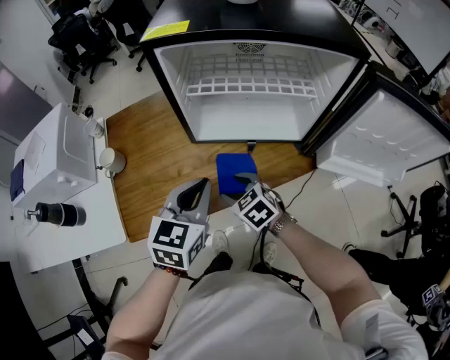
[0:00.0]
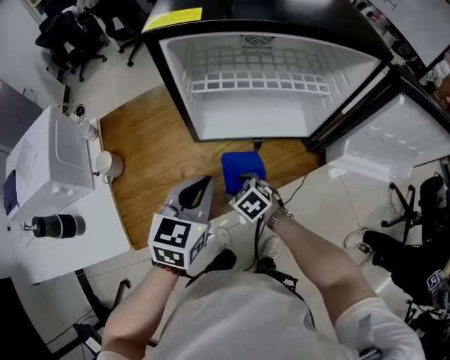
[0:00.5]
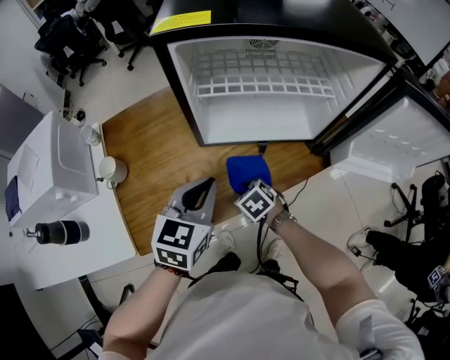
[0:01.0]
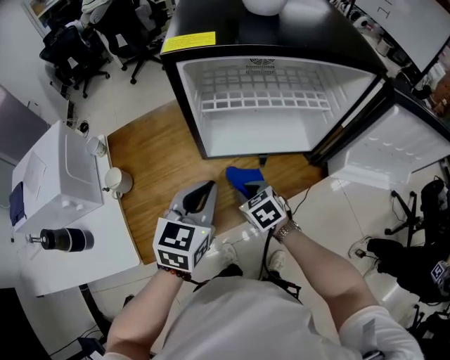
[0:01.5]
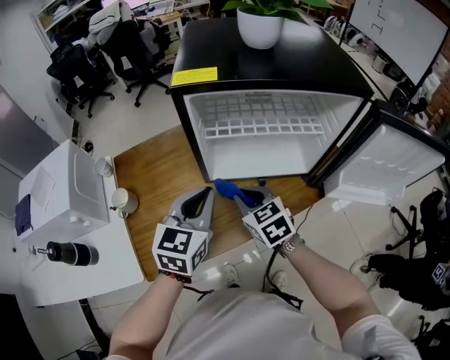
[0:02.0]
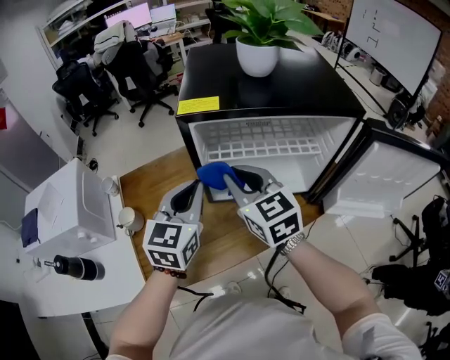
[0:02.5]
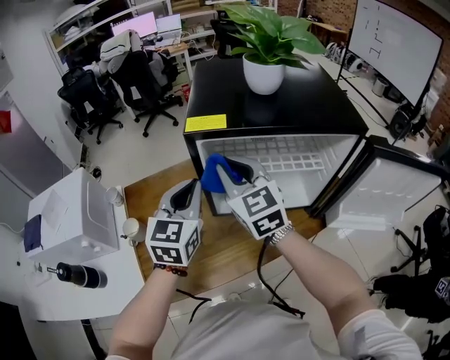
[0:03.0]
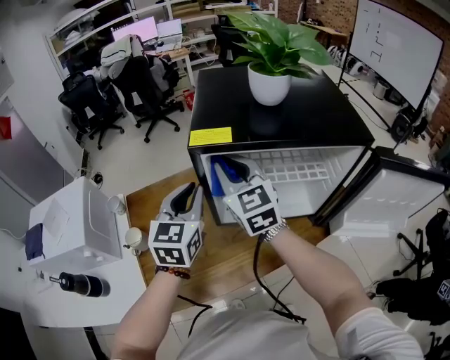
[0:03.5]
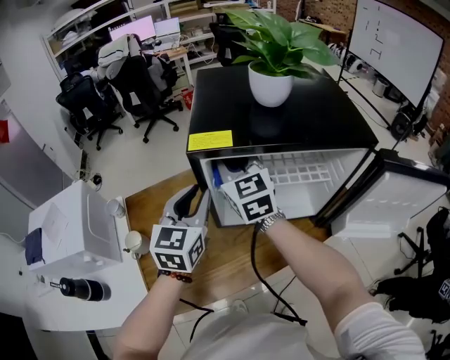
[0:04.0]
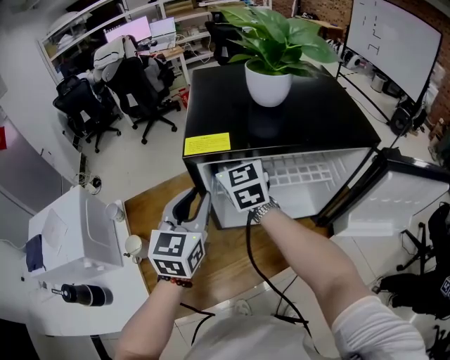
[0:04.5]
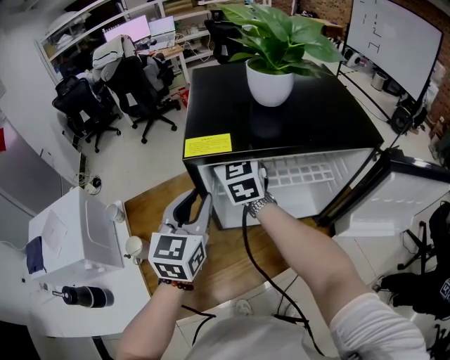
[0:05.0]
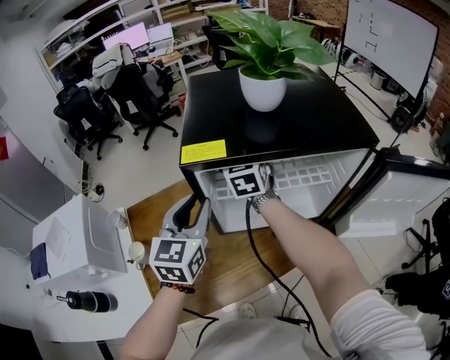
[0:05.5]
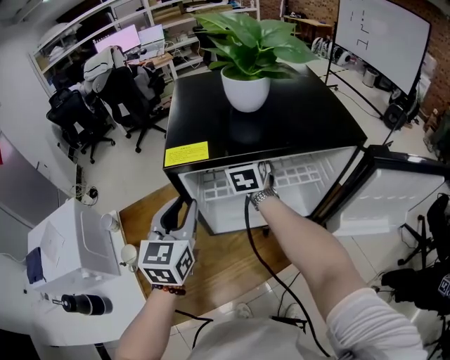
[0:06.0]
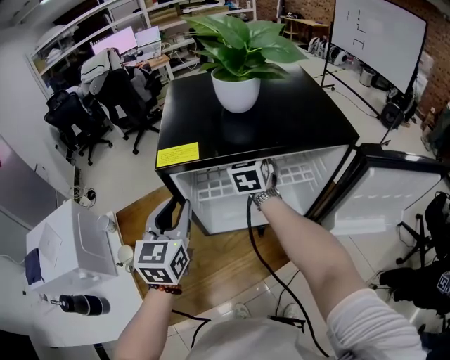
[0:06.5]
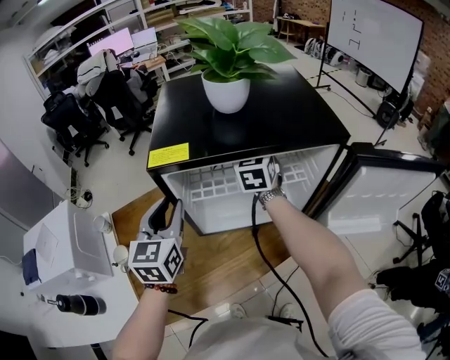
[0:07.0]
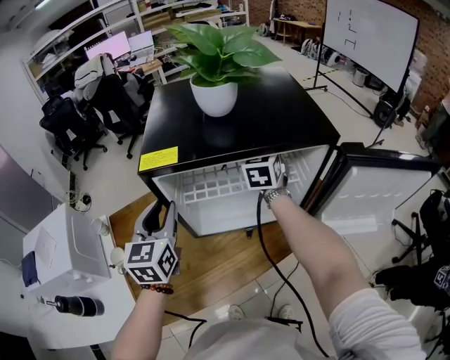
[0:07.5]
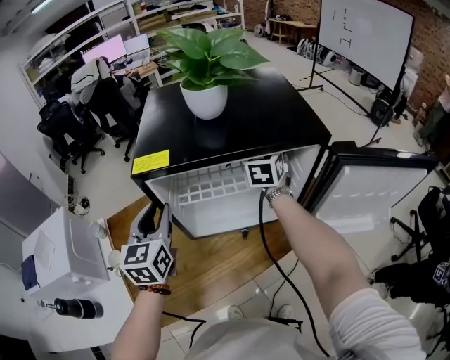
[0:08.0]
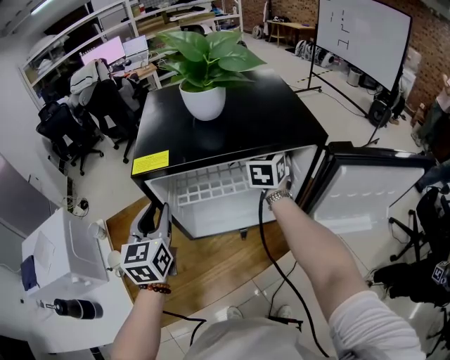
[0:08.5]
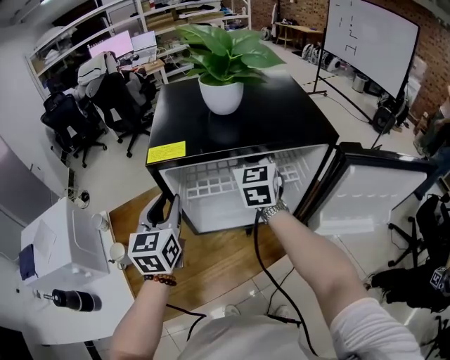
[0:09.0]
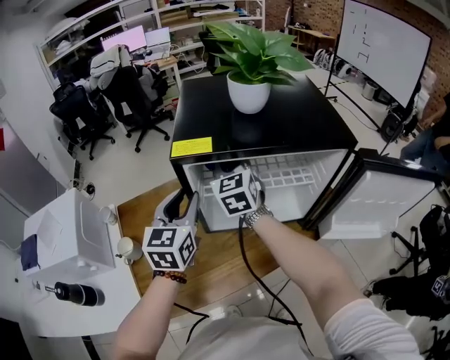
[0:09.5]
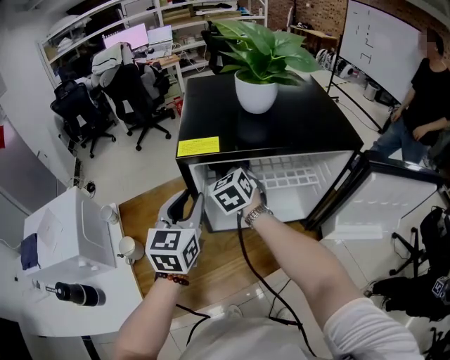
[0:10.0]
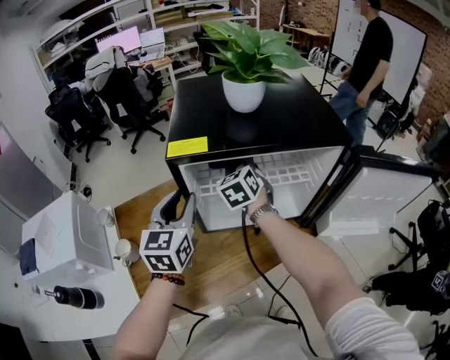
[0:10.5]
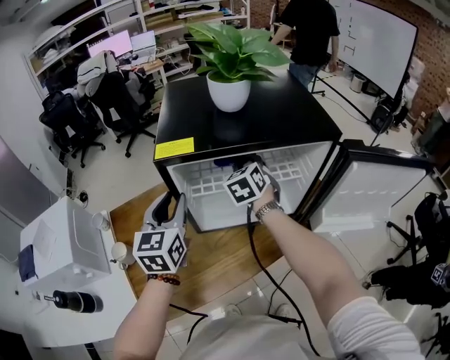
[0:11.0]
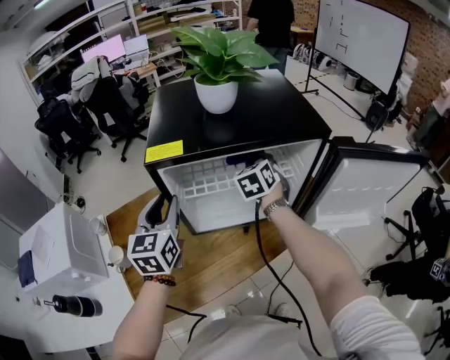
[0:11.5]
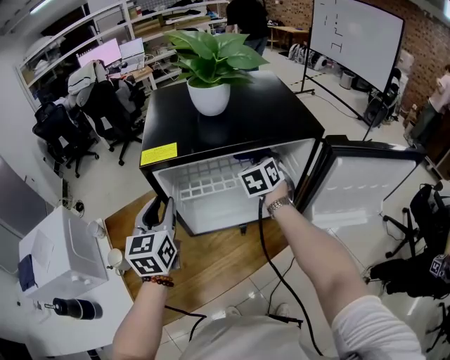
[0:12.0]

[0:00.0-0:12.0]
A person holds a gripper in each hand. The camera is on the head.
0:00.0 to 0:02.0: The right gripper heads upward and forward, covering some 15 cm, and closes up. Meanwhile the left gripper heads forward, covering roughly 10 cm.
0:02.0 to 0:04.0: The right gripper heads upward and forward, covering approximately 30 cm, and turns by roughly 30 degrees. Meanwhile the left gripper moves forward and upward, about 15 cm, and opens its fingers.
0:04.0 to 0:06.0: The right gripper moves forward and to the right, roughly 15 cm, and swivels about 20 degrees.
0:06.0 to 0:08.0: The right gripper is displaced to the right by roughly 15 cm.
0:08.0 to 0:10.0: The right gripper heads to the left, covering roughly 25 cm, and swivels about 30 degrees.
0:10.0 to 0:12.0: The right gripper shifts roughly 25 cm to the right, and swivels some 30 degrees.

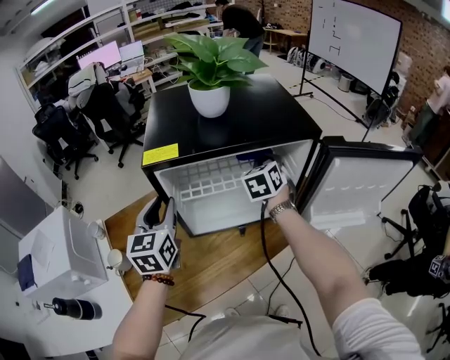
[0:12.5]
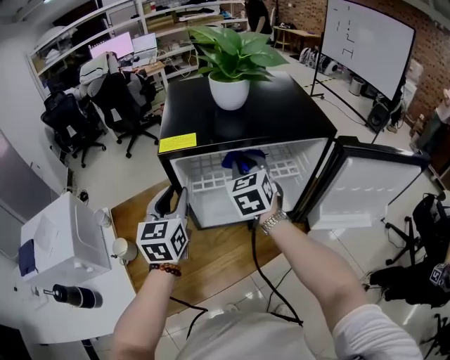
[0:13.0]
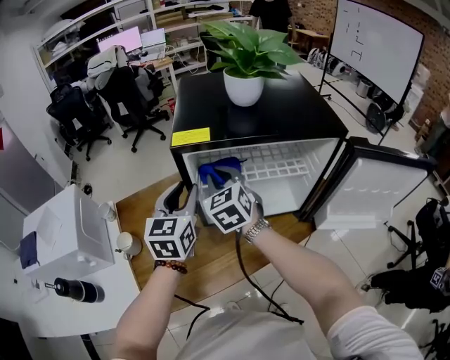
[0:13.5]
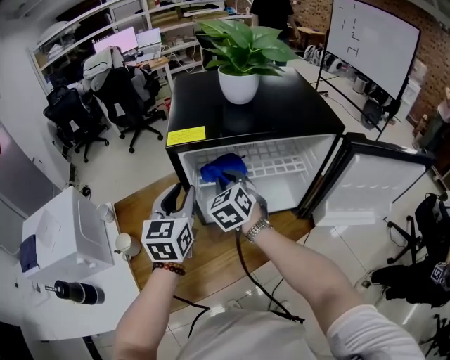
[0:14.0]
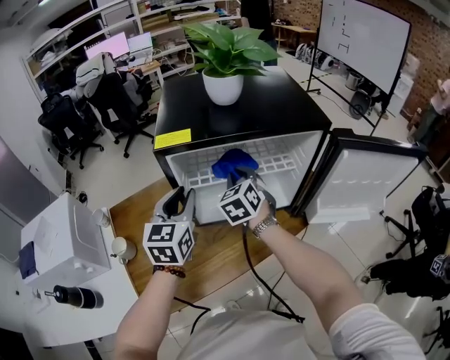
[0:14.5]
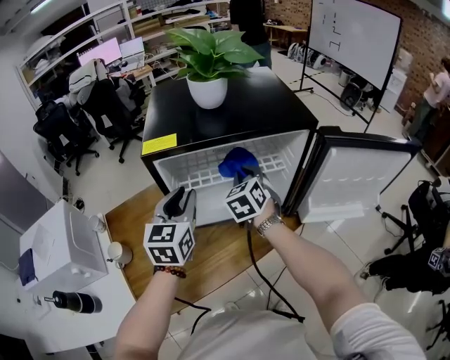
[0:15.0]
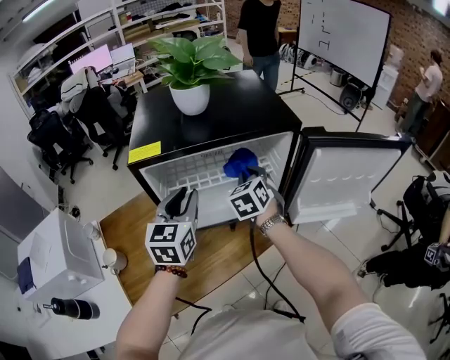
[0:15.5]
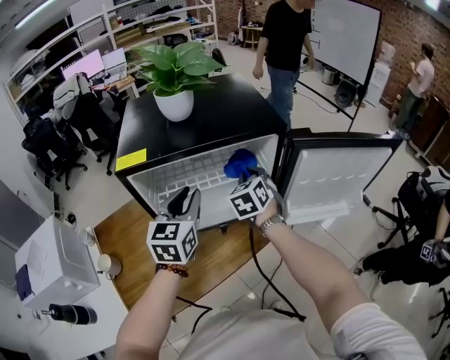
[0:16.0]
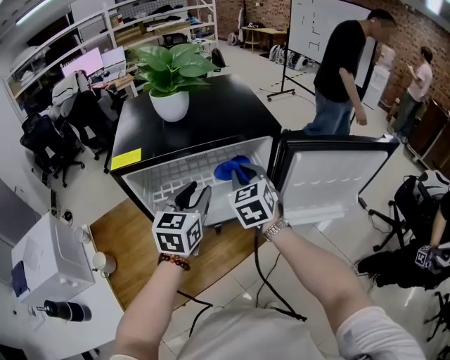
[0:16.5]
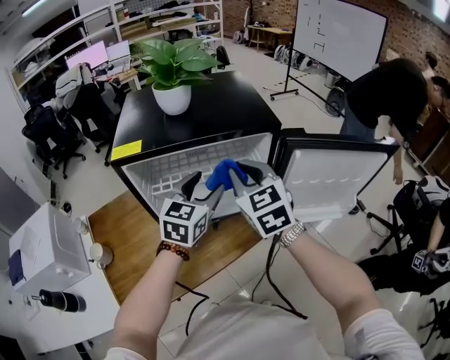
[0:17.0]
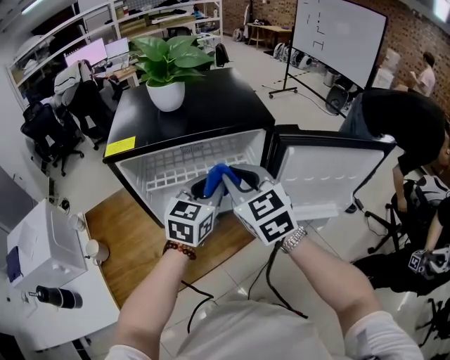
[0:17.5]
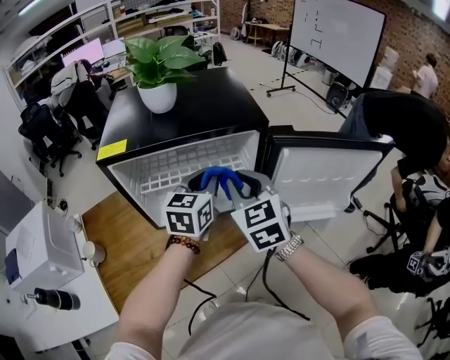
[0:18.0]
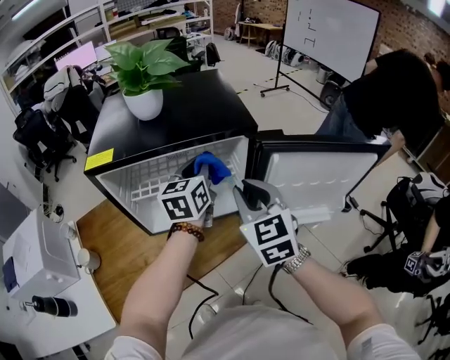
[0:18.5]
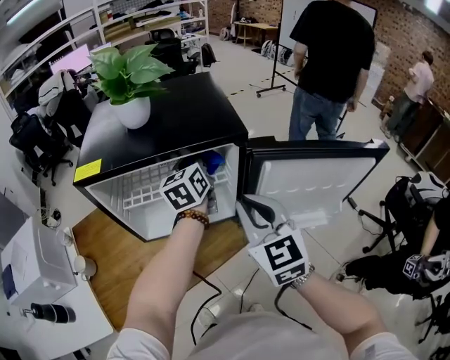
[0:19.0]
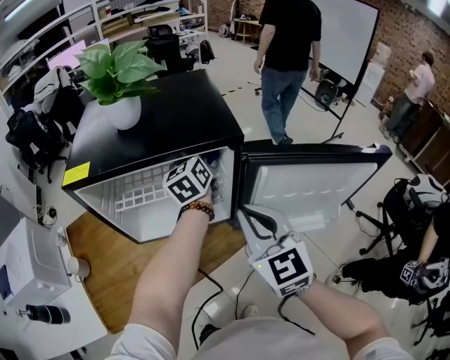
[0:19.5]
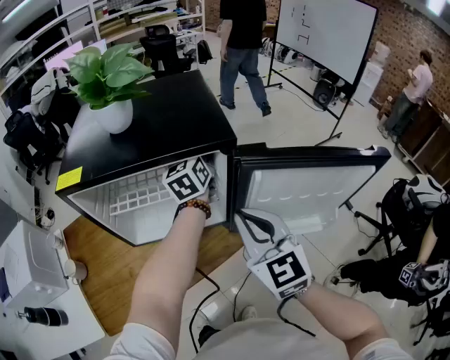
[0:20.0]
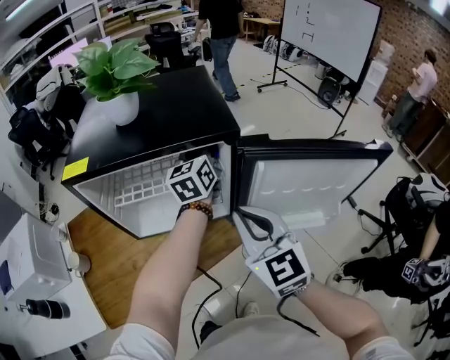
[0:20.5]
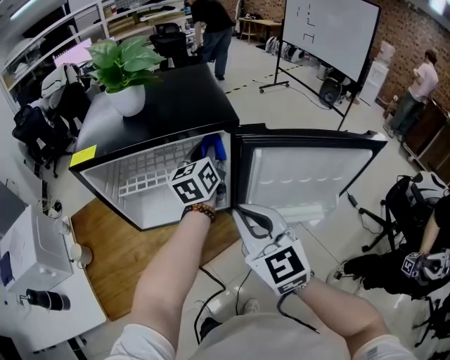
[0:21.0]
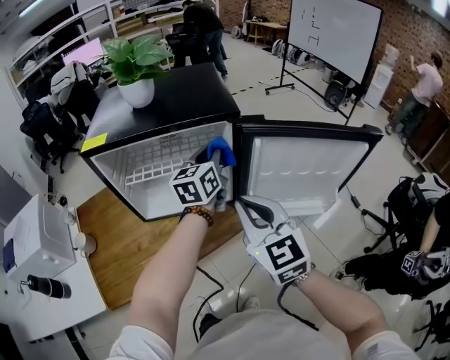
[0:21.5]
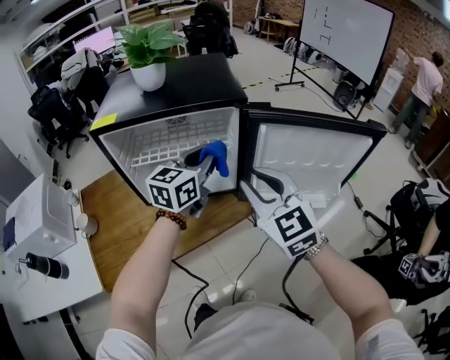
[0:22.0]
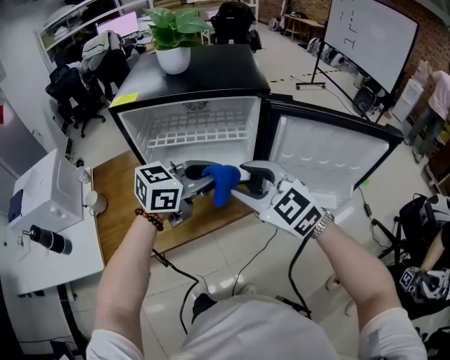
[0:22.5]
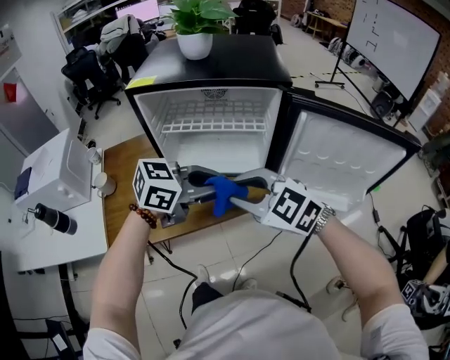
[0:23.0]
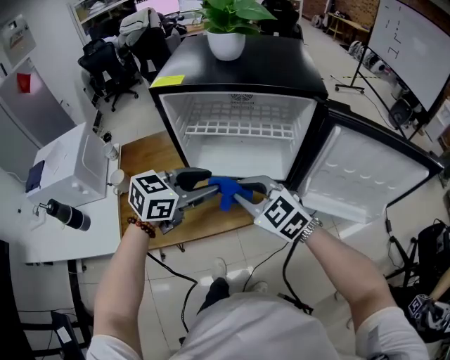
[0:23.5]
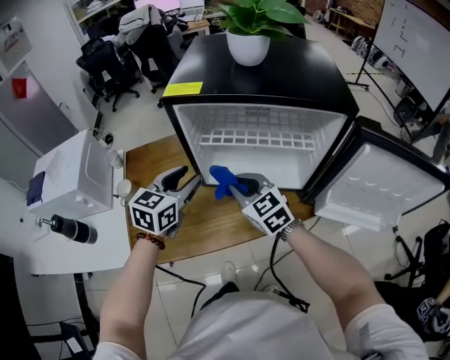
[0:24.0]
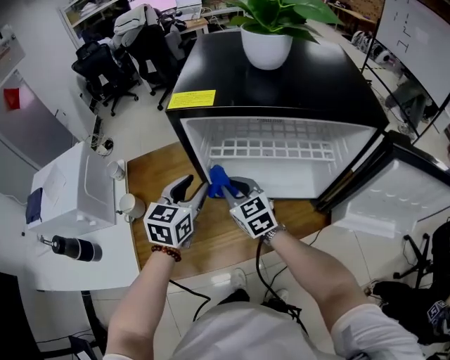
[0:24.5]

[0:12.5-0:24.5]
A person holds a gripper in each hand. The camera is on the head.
0:12.5 to 0:14.5: The right gripper heads to the left and backward, covering approximately 15 cm.
0:14.5 to 0:16.5: The left gripper goes about 15 cm to the right, while the right gripper moves to the right and upward, some 15 cm.
0:16.5 to 0:18.5: The left gripper shifts about 10 cm forward and to the right, and closes. Meanwhile the right gripper moves backward and to the right, roughly 10 cm.
0:18.5 to 0:20.5: The left gripper travels forward and to the right by approximately 10 cm.
0:20.5 to 0:22.5: The right gripper shifts some 10 cm backward and to the left, swivels approximately 30 degrees, and opens its fingers. Meanwhile the left gripper is displaced backward by roughly 25 cm, and rotates approximately 50 degrees.
0:22.5 to 0:24.5: The right gripper ends up approximately 35 cm from where it was, swivels some 20 degrees, and closes its fingers. Meanwhile the left gripper ends up approximately 35 cm from where it was, swivels about 50 degrees, and opens up.

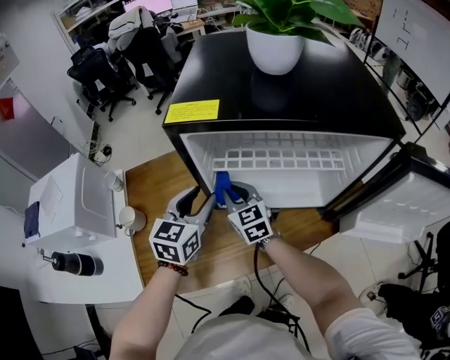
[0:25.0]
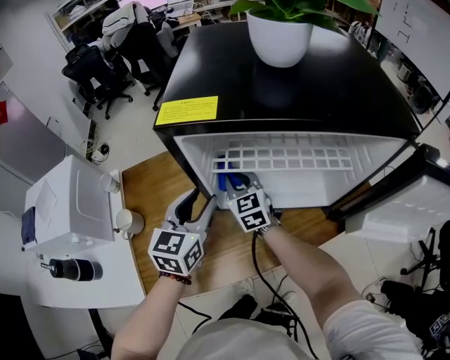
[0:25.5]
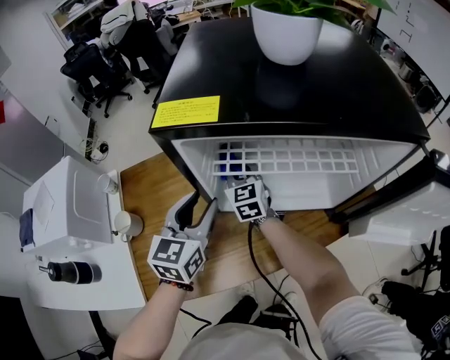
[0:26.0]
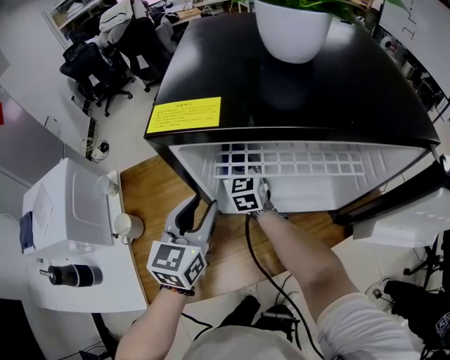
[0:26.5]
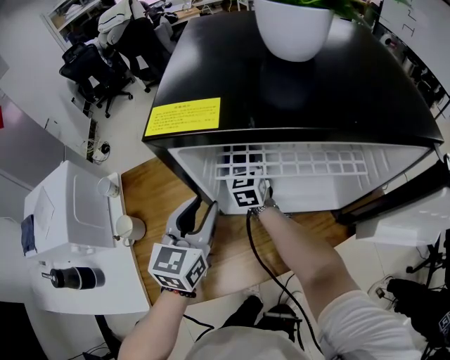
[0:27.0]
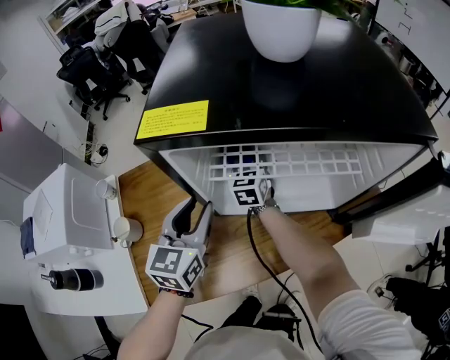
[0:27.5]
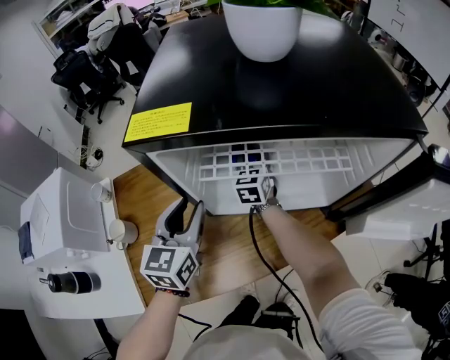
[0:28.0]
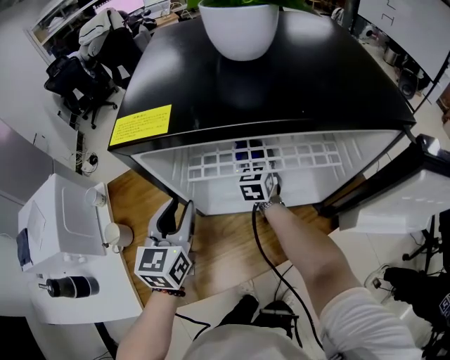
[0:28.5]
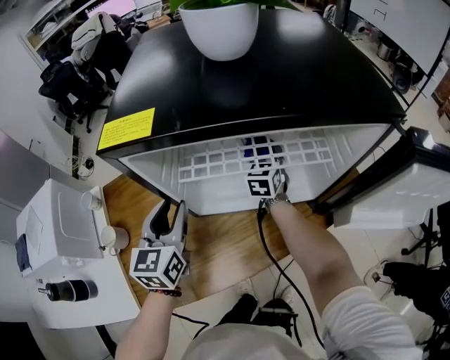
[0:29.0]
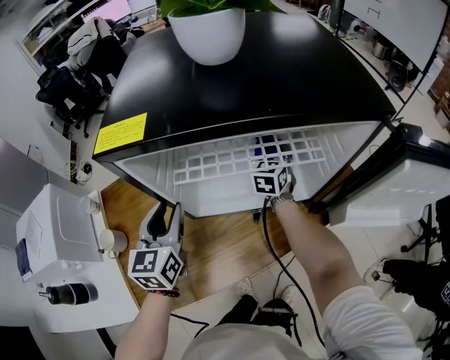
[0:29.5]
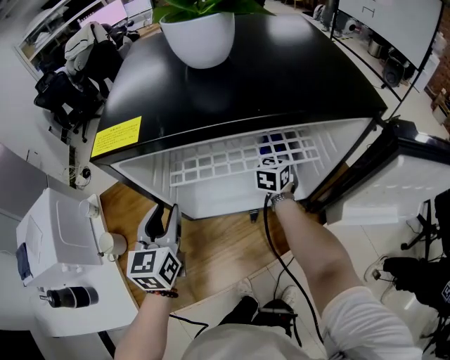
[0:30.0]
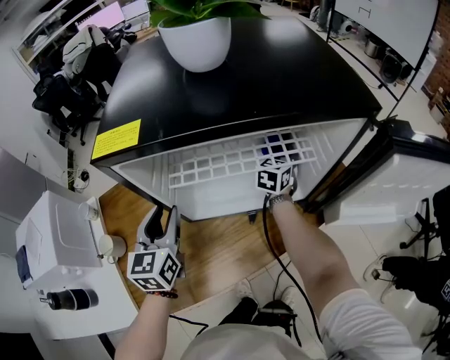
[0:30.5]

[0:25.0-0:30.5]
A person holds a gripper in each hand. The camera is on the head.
0:25.0 to 0:27.0: The right gripper goes roughly 15 cm forward, and rotates approximately 20 degrees.
0:27.0 to 0:28.5: The right gripper travels to the right by some 10 cm.
0:28.5 to 0:30.5: The right gripper goes roughly 15 cm to the right, and rotates approximately 30 degrees.
